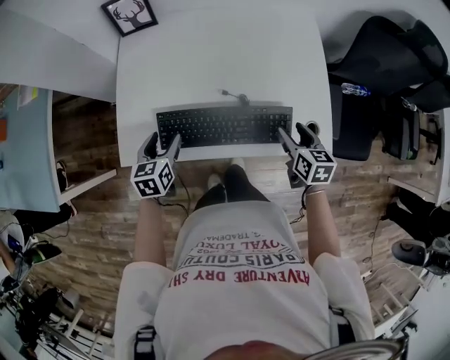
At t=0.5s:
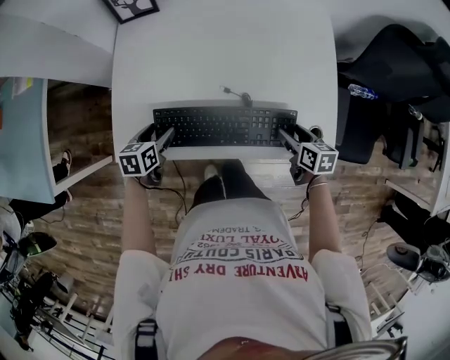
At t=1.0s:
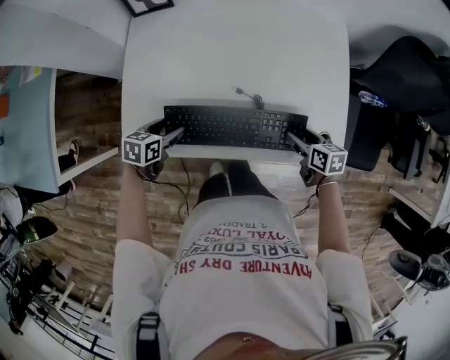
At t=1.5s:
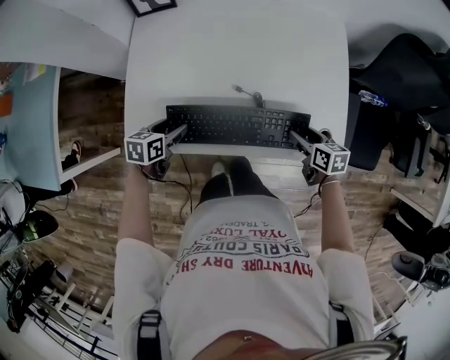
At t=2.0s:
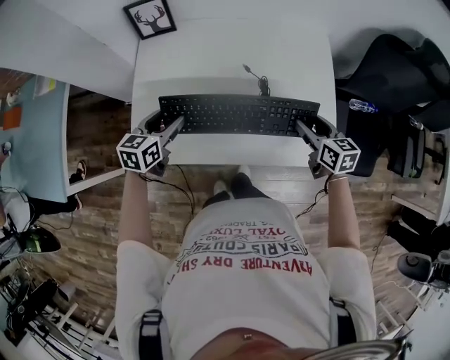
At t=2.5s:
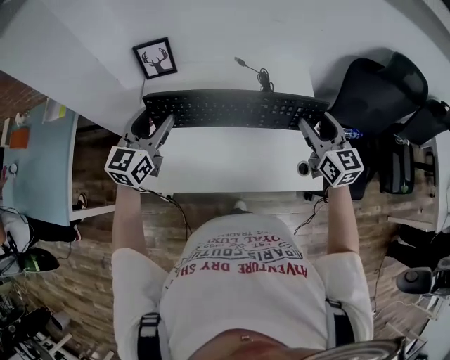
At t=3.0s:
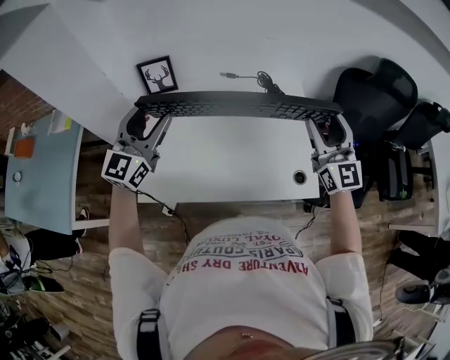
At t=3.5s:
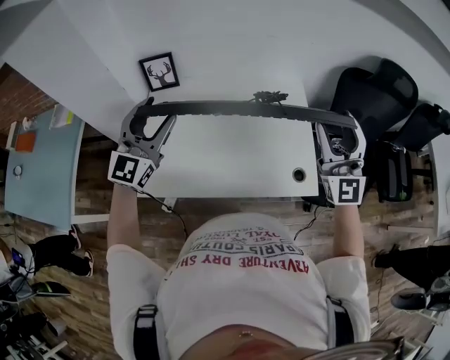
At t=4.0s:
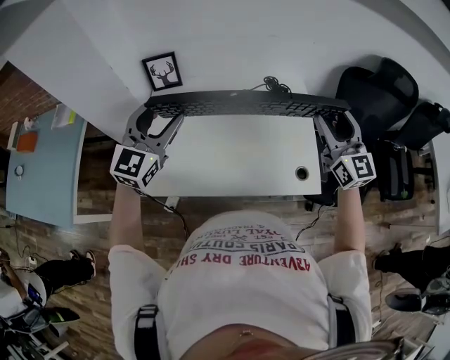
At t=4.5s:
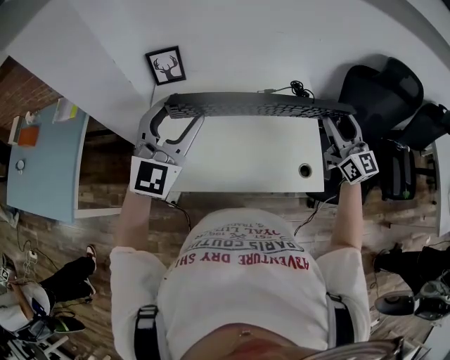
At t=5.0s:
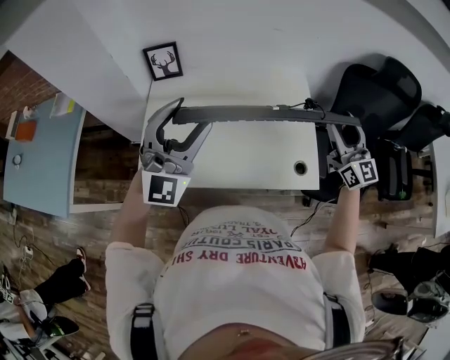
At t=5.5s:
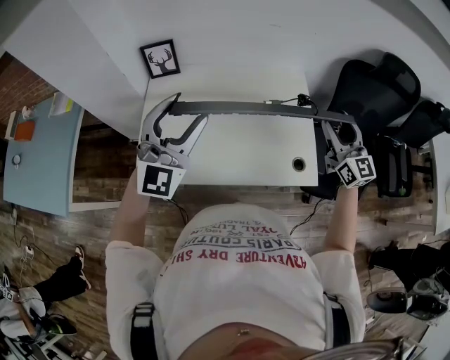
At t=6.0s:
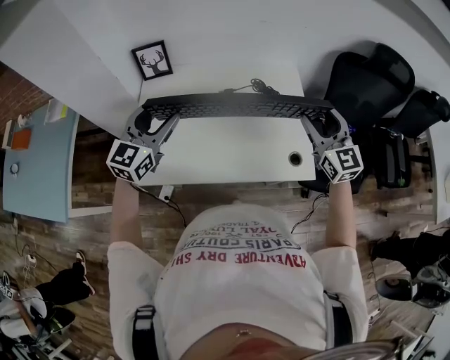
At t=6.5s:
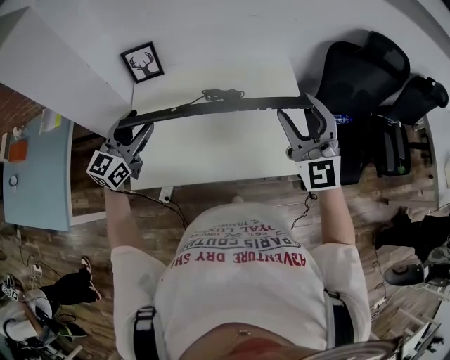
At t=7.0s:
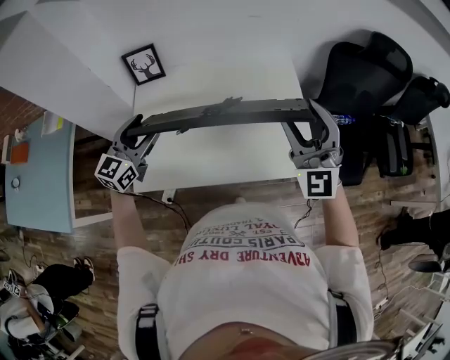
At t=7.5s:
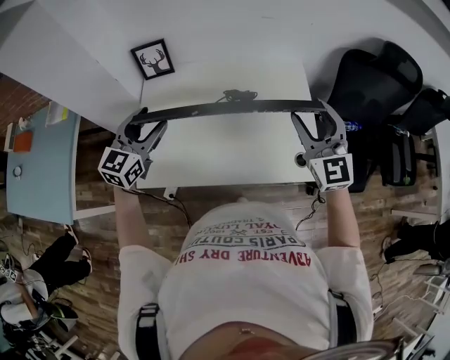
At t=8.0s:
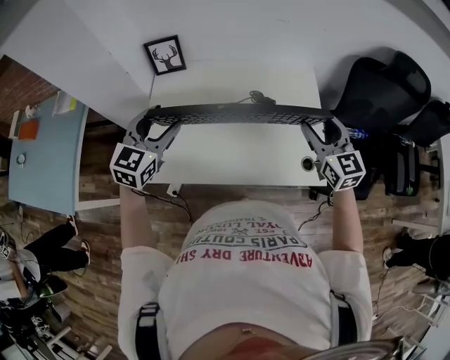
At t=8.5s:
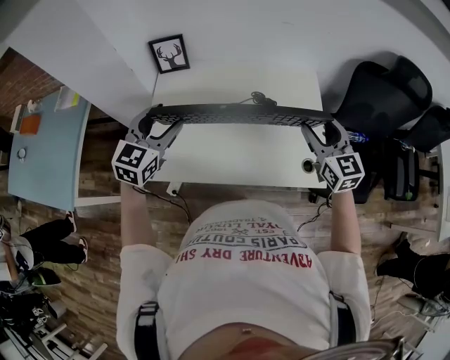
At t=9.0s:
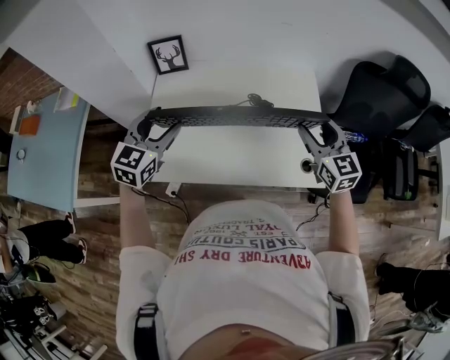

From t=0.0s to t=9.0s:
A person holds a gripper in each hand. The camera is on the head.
From t=0.0s to t=2.0s: The left gripper moves forward and upward, some 10 cm, while the right gripper heads forward, covering about 5 cm.
From t=2.0s to t=4.5s: The grippers both shift upward by roughly 25 cm. The right gripper tips its fingers upward by approximately 40 degrees, while the left gripper tilts its fingers about 40 degrees upward.
From t=4.5s to t=7.0s: The right gripper goes roughly 15 cm to the left and backward, and rolls counterclockwise, seen from behind, by approximately 50 degrees. Meanwhile the left gripper heads downward and to the left, covering about 15 cm, and changes its angle by approximately 30 degrees.
From t=7.0s to t=9.0s: The right gripper heads downward, covering about 10 cm, and turns by about 40 degrees.

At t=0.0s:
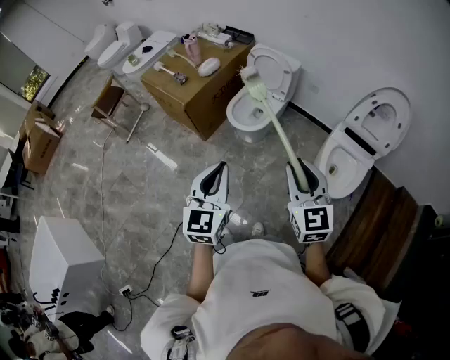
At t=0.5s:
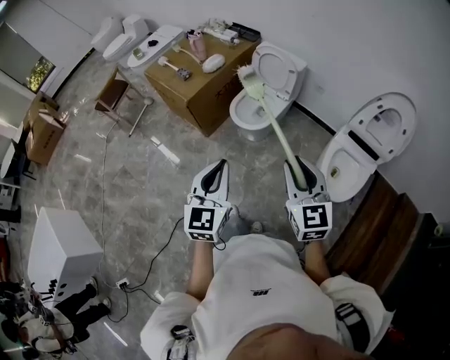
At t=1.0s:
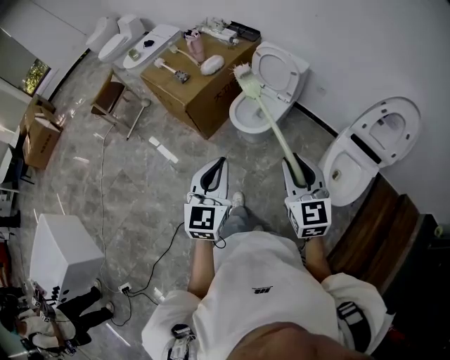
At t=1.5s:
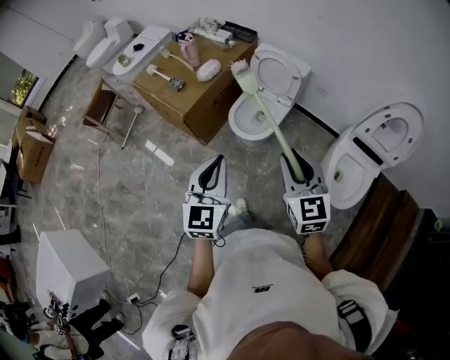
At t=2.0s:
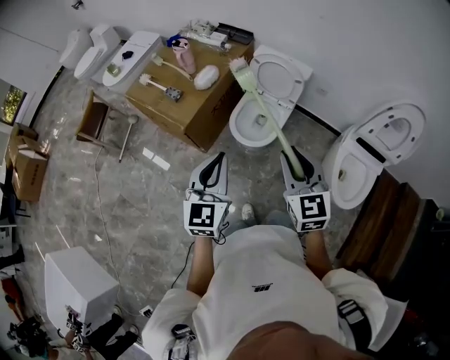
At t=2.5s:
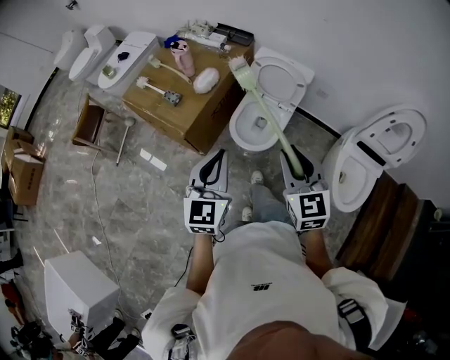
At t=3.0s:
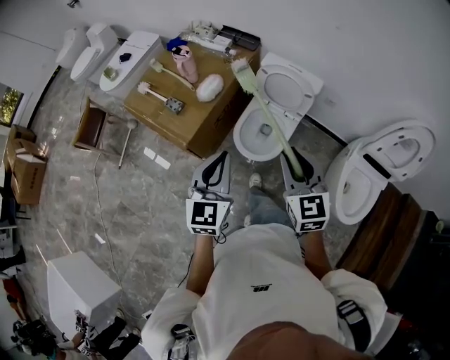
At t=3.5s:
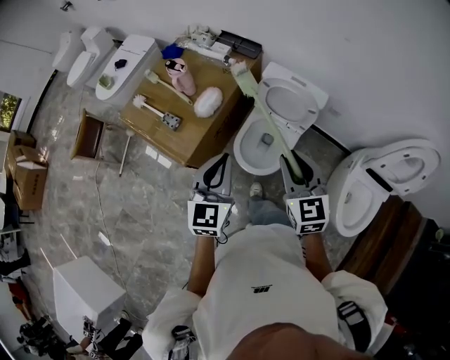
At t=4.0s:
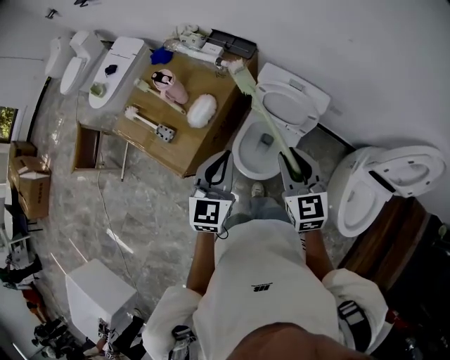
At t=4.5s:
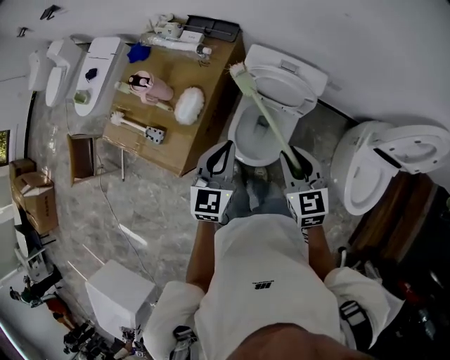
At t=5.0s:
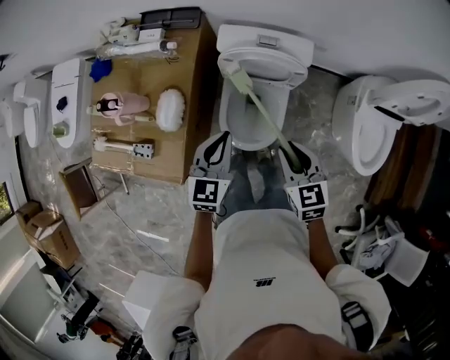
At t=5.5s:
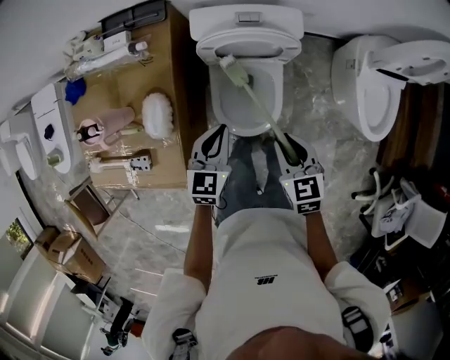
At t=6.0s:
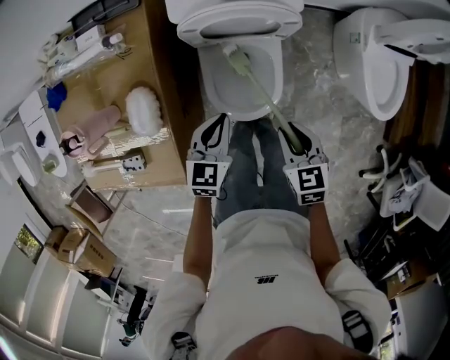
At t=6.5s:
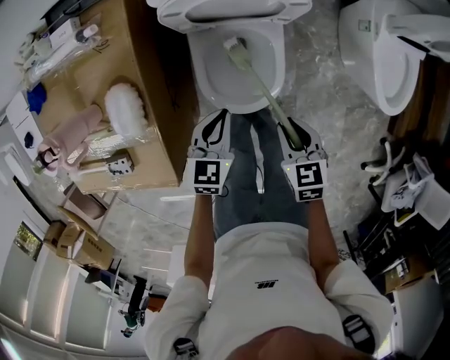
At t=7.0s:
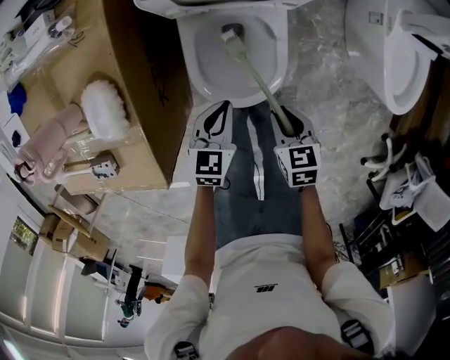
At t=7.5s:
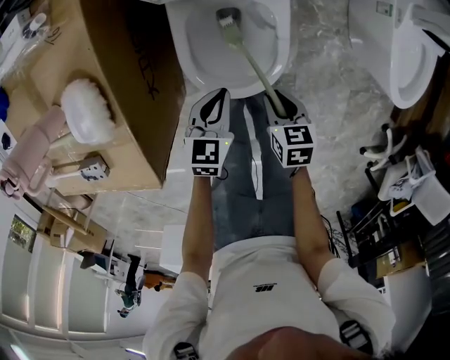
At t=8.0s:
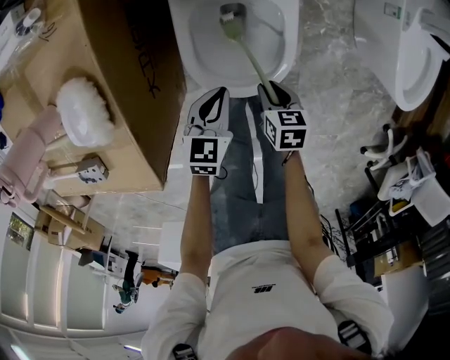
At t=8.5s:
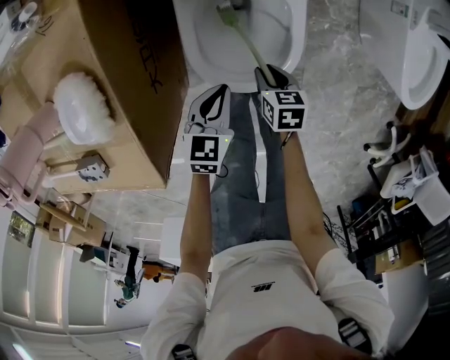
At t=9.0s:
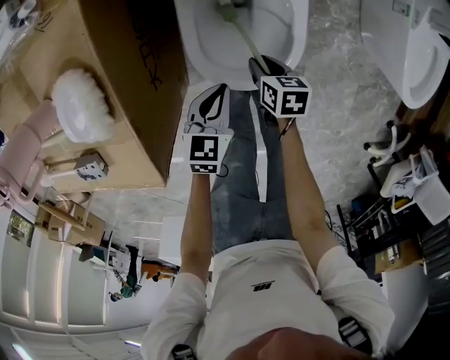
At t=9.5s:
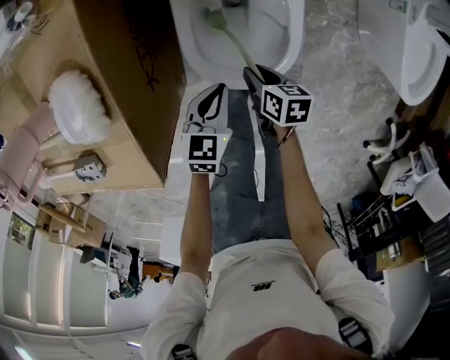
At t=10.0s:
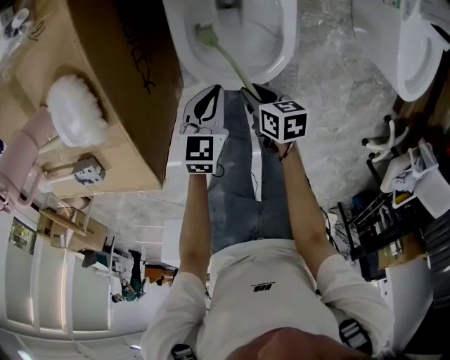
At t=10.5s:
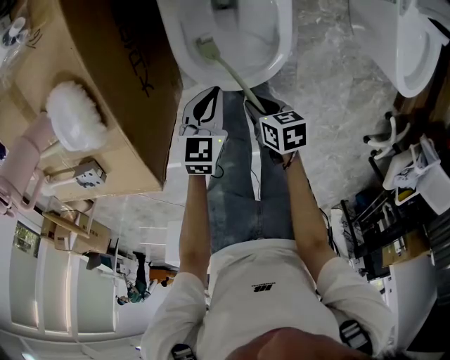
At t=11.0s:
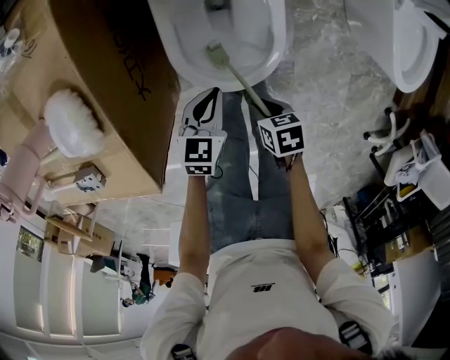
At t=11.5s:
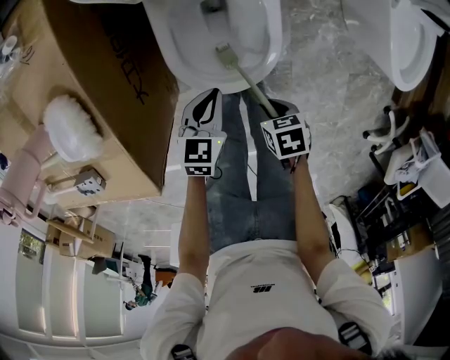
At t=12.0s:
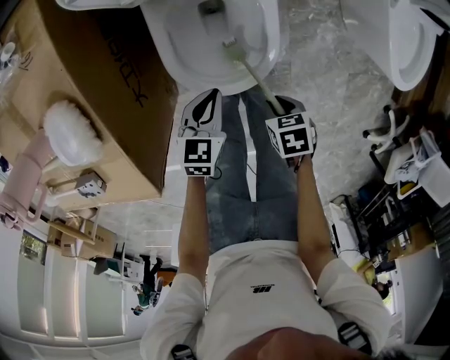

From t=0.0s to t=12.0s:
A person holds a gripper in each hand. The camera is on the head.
From t=0.0s to t=2.0s: The two grippers go about 30 cm forward and to the left.
From t=2.0s to t=4.0s: Both grippers travel together forward, about 35 cm.
From t=4.0s to t=6.0s: Both grippers move downward, roughly 30 cm. The left gripper swivels approximately 40 degrees, while the right gripper turns by about 40 degrees.
From t=6.0s to t=8.0s: The grippers both shift downward by approximately 25 cm. The right gripper rotates roughly 20 degrees.
From t=8.0s to t=10.0s: The right gripper goes about 5 cm to the left.
From t=10.0s to t=12.0s: The right gripper changes place by some 10 cm, and changes its angle by some 30 degrees.

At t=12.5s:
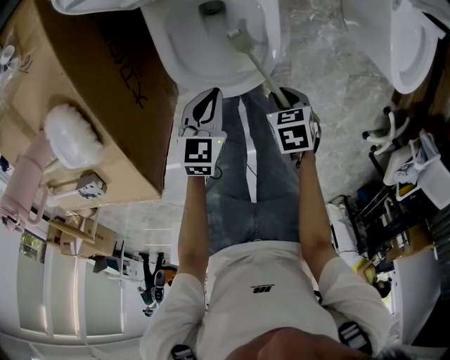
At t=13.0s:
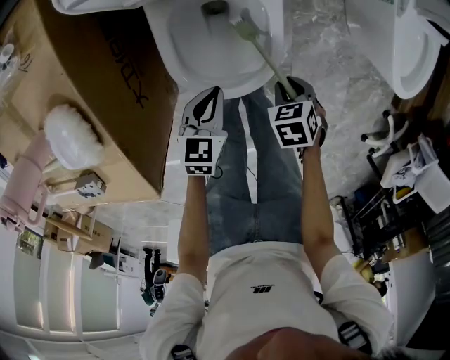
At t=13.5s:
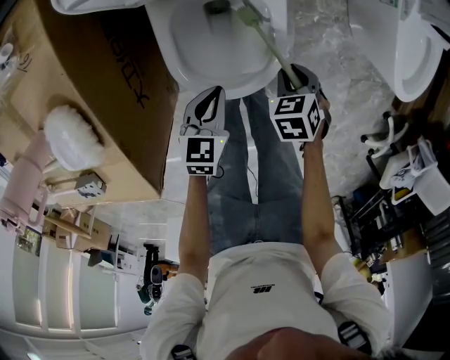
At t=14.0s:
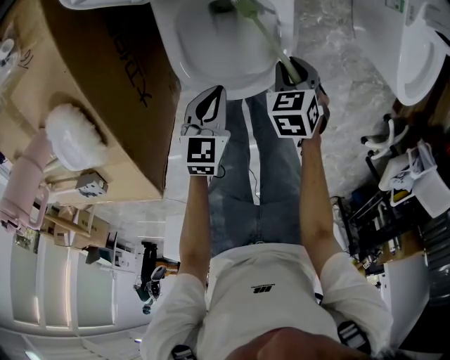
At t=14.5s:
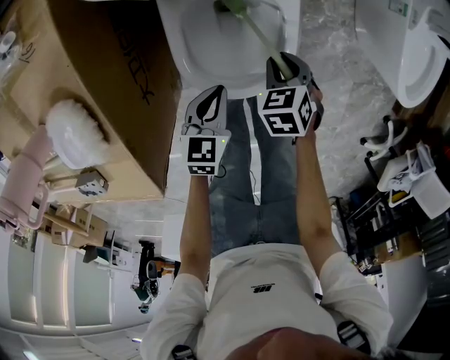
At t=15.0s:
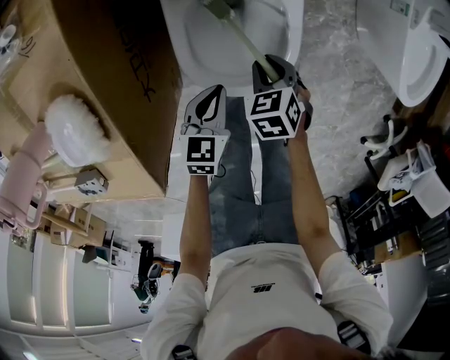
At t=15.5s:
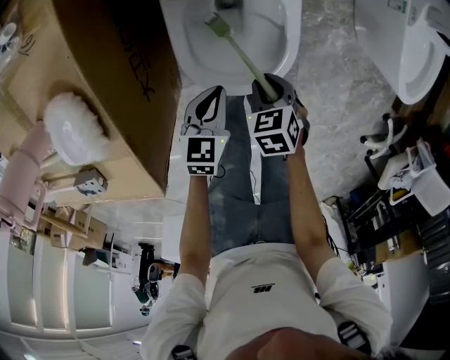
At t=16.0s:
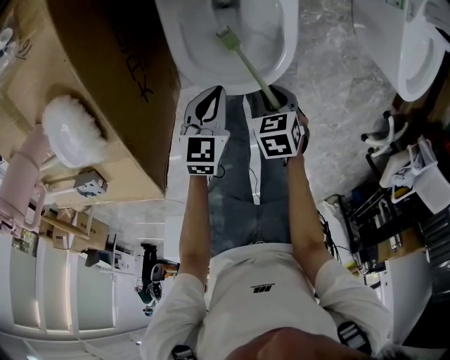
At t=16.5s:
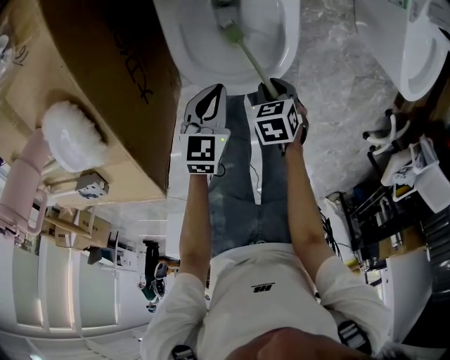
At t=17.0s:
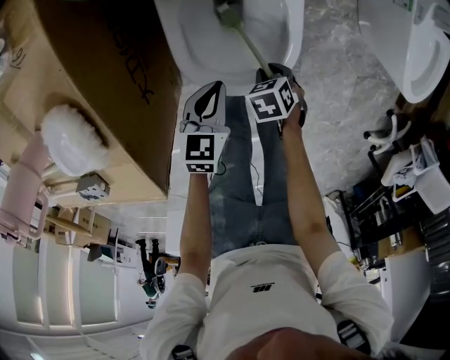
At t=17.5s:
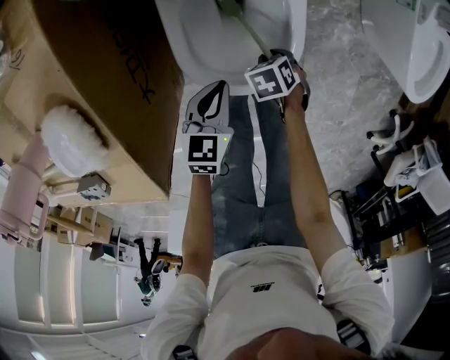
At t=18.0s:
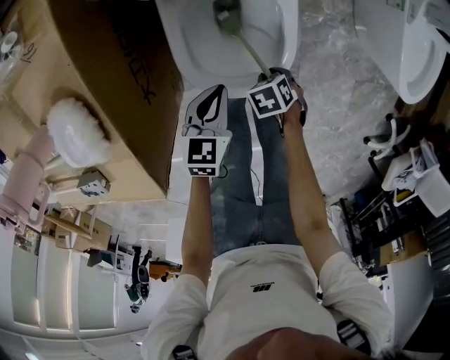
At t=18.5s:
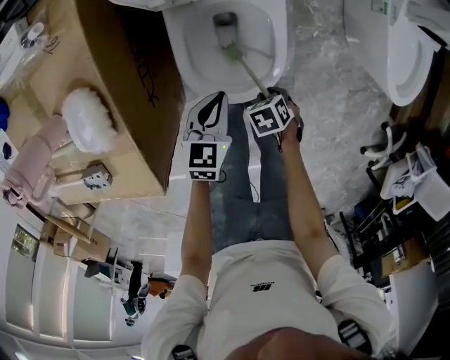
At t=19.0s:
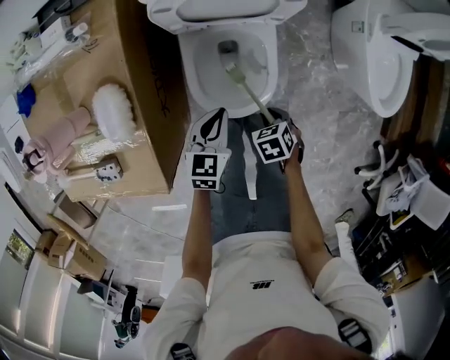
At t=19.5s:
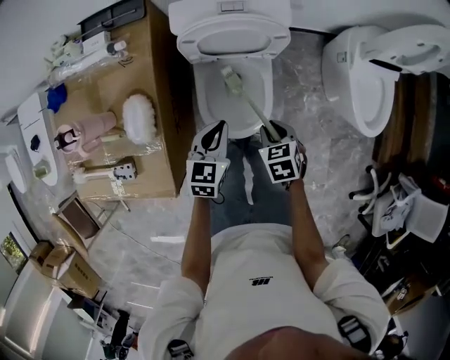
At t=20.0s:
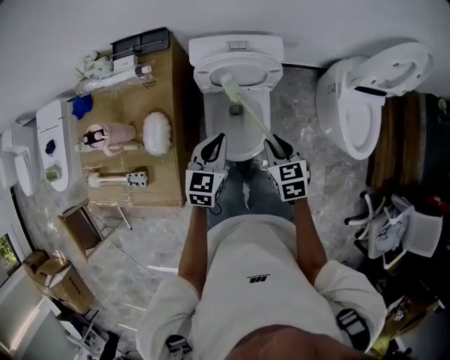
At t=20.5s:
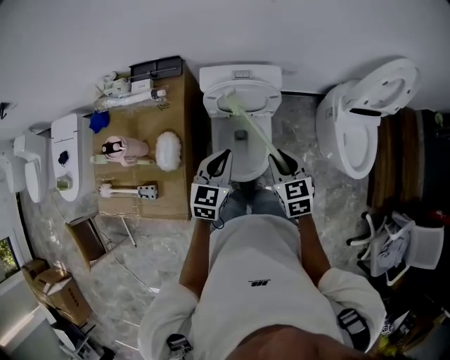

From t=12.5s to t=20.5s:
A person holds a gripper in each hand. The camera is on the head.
From t=12.5s to t=14.5s: The right gripper changes place by roughly 15 cm, and swivels some 20 degrees.
From t=14.5s to t=16.5s: The right gripper shifts by approximately 10 cm.
From t=16.5s to t=18.5s: The left gripper moves upward, approximately 5 cm, while the right gripper travels downward and back again, some 5 cm each way.
From t=18.5s to t=20.5s: Both grippers travel together upward, about 40 cm. The left gripper changes its angle by some 20 degrees; the right gripper tilts its fingers about 40 degrees upward.
